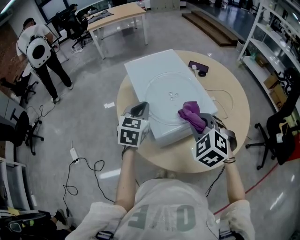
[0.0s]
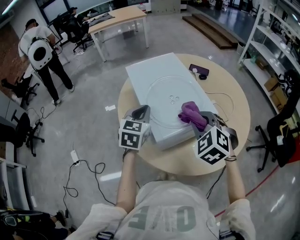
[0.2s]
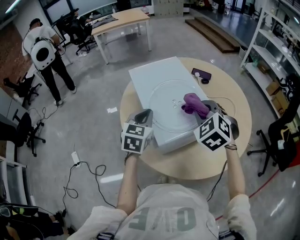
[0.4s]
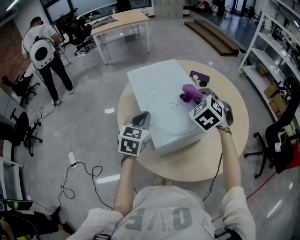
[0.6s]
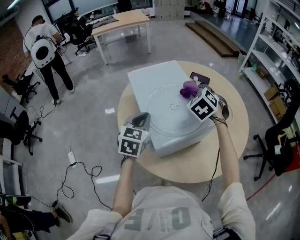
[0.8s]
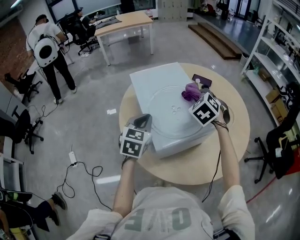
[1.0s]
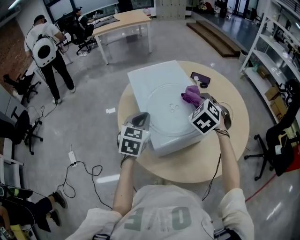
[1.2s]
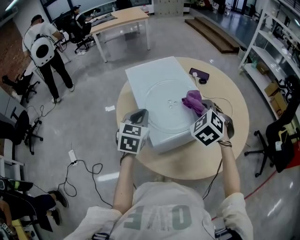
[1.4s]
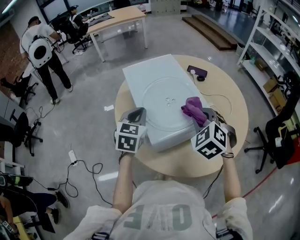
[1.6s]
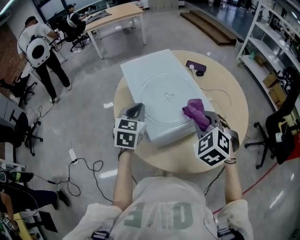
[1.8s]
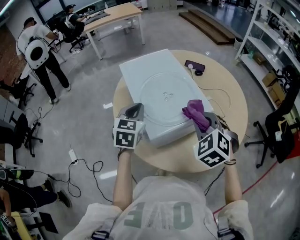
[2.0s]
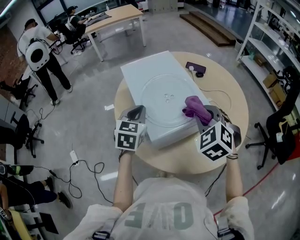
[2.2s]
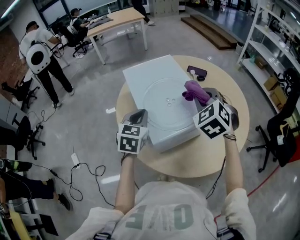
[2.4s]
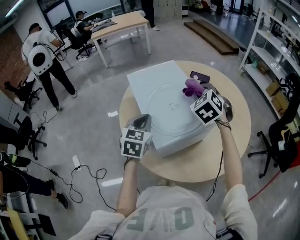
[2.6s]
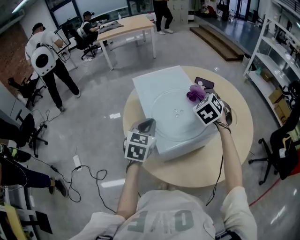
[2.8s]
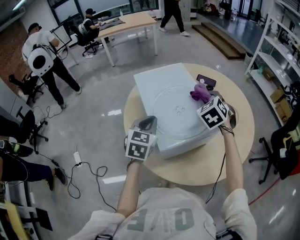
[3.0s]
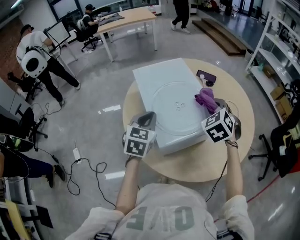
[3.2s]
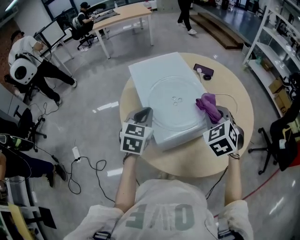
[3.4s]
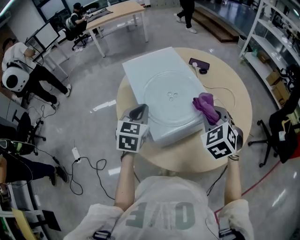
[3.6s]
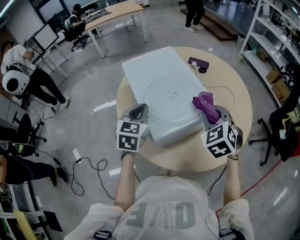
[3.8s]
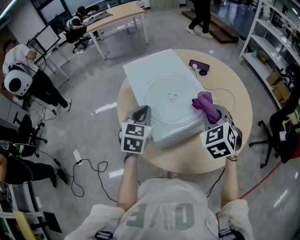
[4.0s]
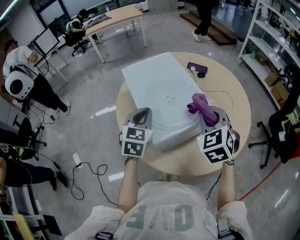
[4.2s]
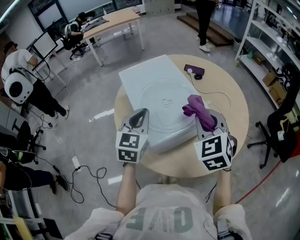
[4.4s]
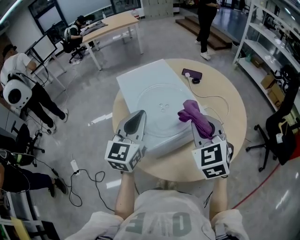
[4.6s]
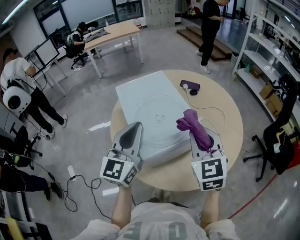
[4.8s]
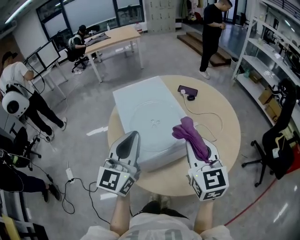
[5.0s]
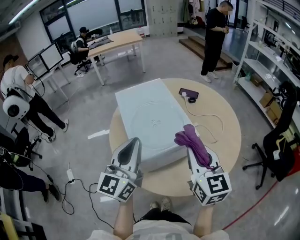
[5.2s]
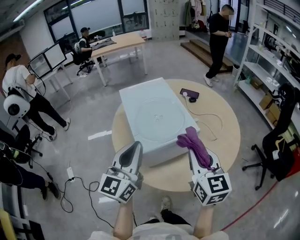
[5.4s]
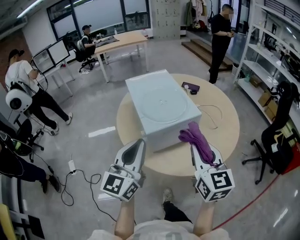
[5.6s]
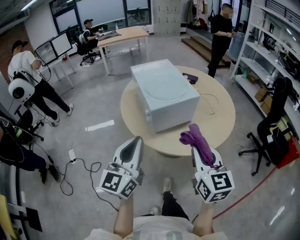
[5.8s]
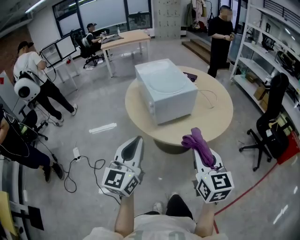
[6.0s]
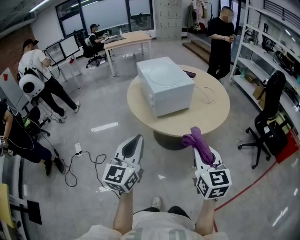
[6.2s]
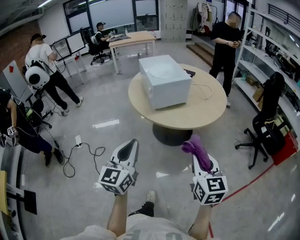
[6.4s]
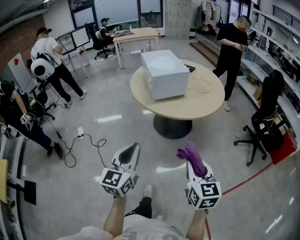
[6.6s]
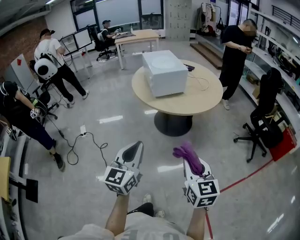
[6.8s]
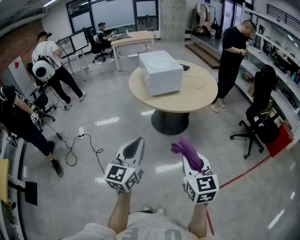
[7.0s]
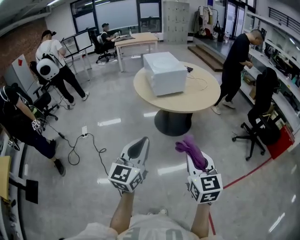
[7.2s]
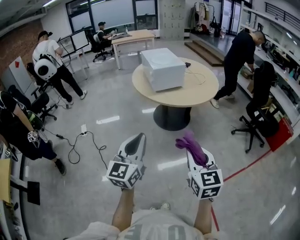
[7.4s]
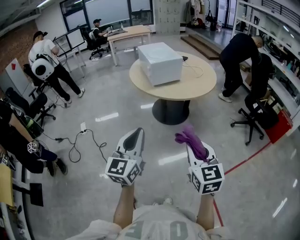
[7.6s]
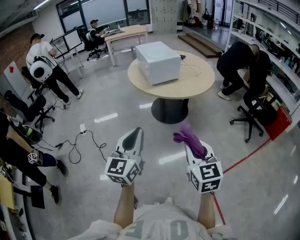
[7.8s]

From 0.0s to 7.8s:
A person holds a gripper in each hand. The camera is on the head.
From 0.0s to 1.6s: The right gripper reaches some 20 cm forward, then returns.
From 1.6s to 3.2s: The right gripper goes roughly 5 cm forward.
From 3.2s to 4.6s: The left gripper shifts about 10 cm upward, and rotates roughly 30 degrees. Meanwhile the right gripper is displaced backward and upward by some 10 cm, and rotates roughly 20 degrees.
From 4.6s to 6.2s: The pair of grippers is taken backward, approximately 40 cm. The right gripper rotates approximately 30 degrees.
From 6.2s to 7.8s: The two grippers go roughly 30 cm backward.

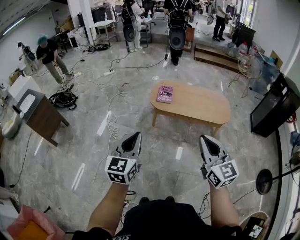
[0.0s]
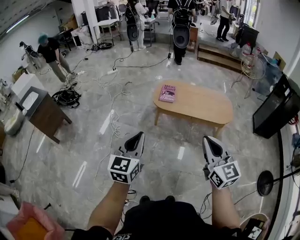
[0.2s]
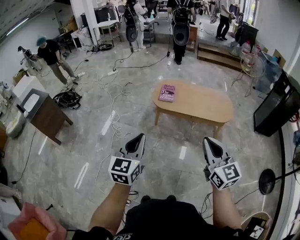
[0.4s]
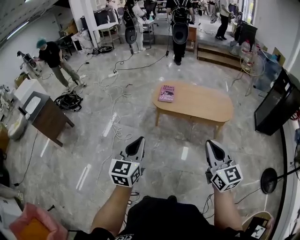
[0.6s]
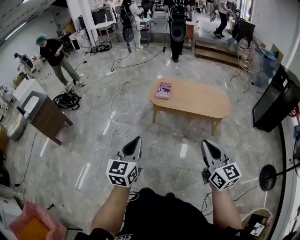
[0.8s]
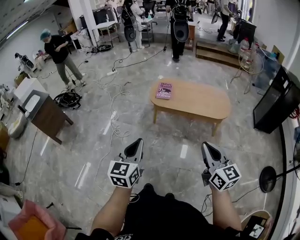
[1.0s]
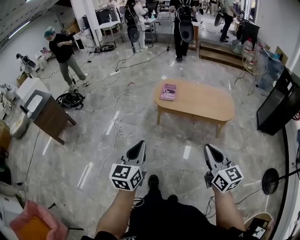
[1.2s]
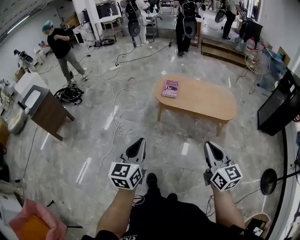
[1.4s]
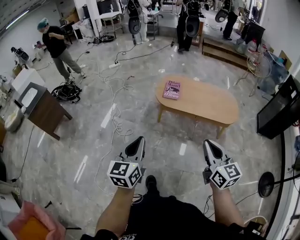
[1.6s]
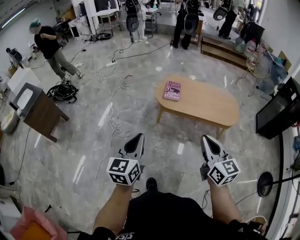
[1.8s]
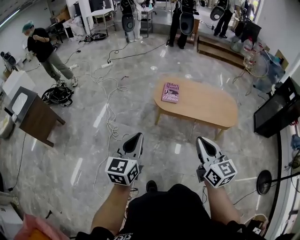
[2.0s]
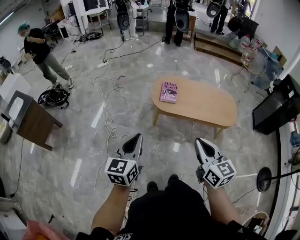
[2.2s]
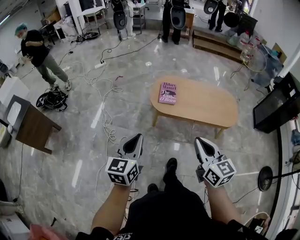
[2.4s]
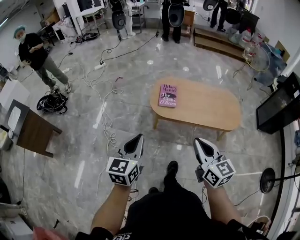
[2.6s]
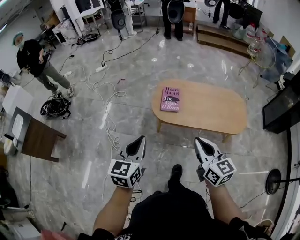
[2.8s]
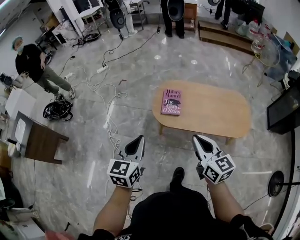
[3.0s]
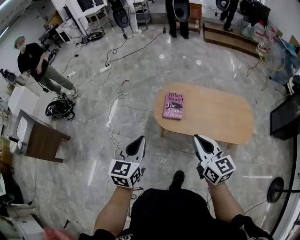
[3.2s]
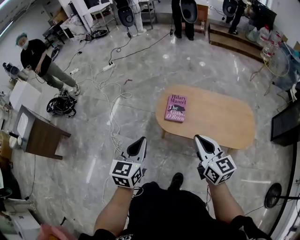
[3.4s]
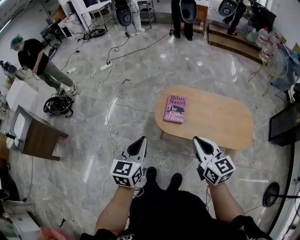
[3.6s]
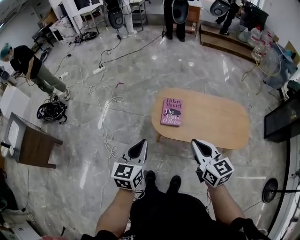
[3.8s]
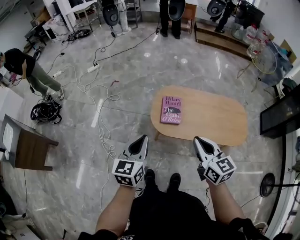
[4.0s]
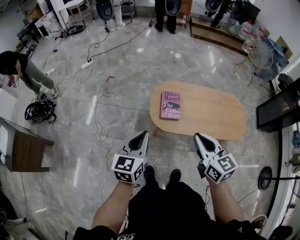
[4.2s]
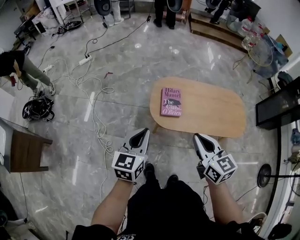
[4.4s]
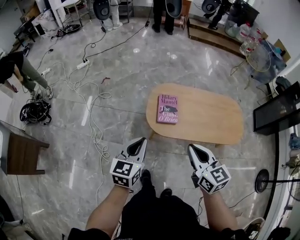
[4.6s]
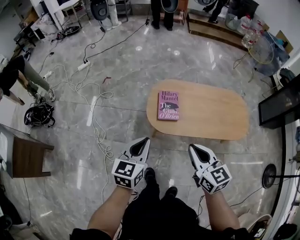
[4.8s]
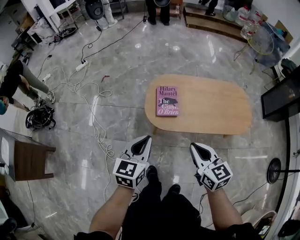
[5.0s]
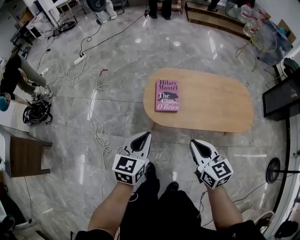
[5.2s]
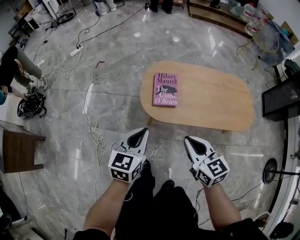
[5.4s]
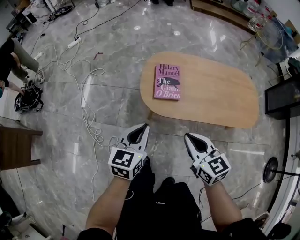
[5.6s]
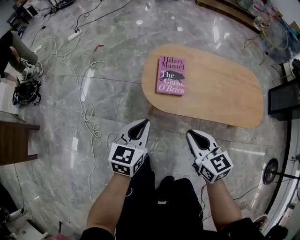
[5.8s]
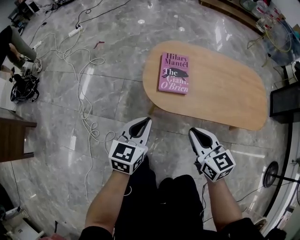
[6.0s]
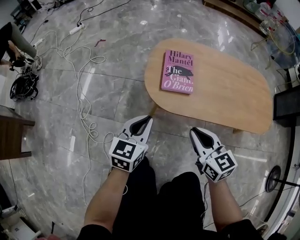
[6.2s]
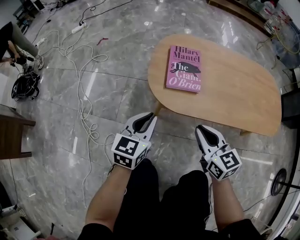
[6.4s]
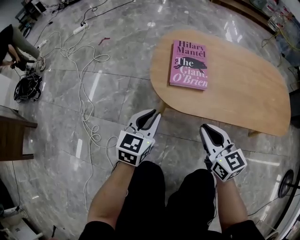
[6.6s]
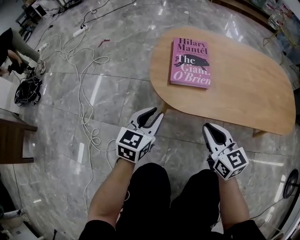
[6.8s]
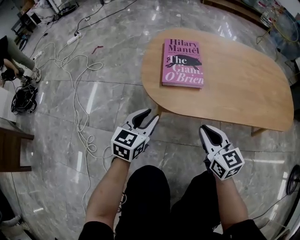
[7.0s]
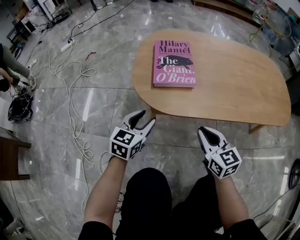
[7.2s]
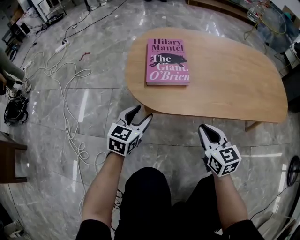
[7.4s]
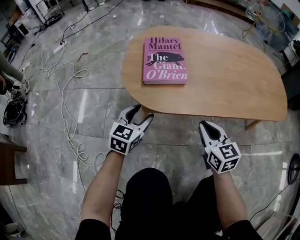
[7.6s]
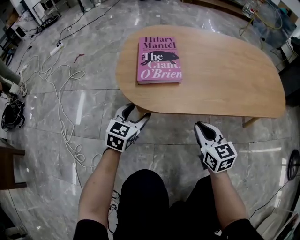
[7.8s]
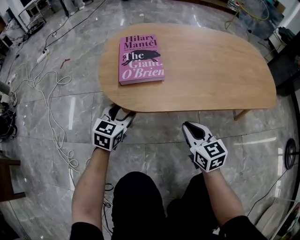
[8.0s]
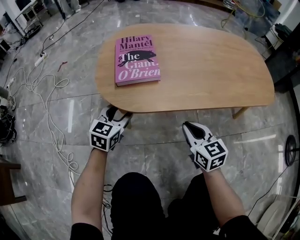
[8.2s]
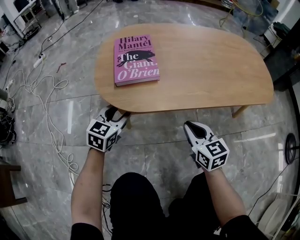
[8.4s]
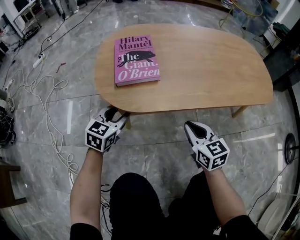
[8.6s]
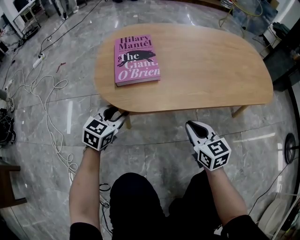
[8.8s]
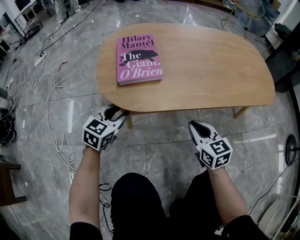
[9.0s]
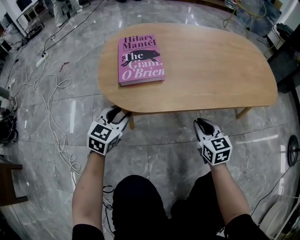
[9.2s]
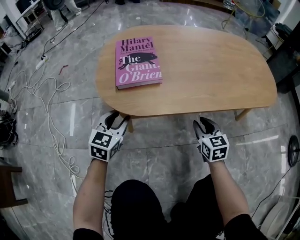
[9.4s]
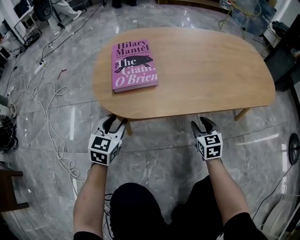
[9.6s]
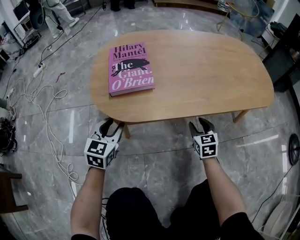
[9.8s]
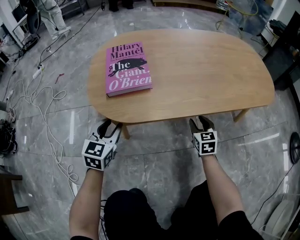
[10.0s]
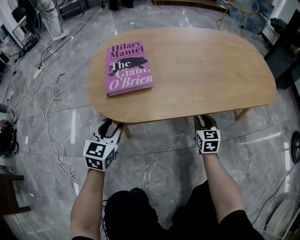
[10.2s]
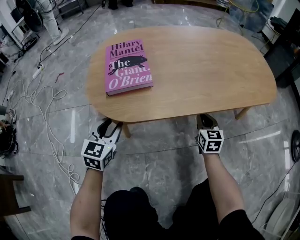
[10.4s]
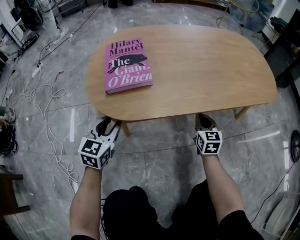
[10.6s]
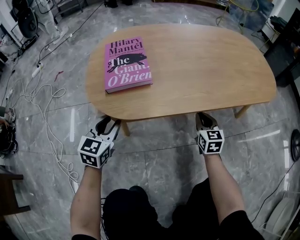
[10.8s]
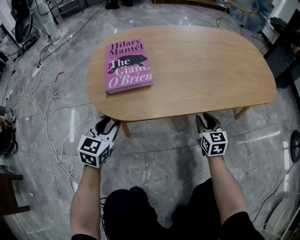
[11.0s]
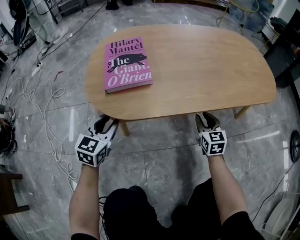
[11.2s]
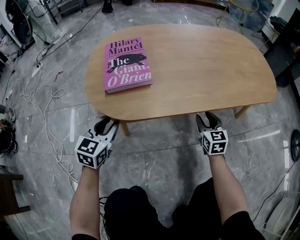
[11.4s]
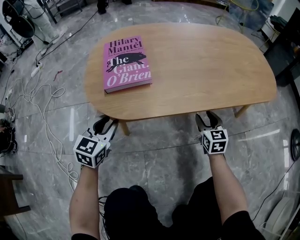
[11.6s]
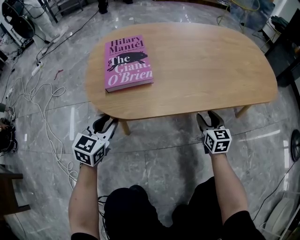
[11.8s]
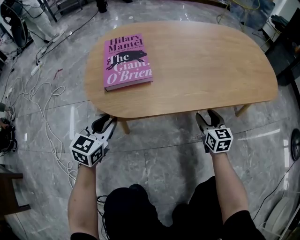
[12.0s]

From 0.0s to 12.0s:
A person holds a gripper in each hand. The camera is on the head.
From 0.0s to 1.6s: The left gripper reaches roughly 5 cm backward, then returns. The right gripper heads downward, covering some 5 cm.
From 1.6s to 3.0s: Both grippers move forward, some 35 cm.
From 3.0s to 4.4s: Both grippers move forward and to the left, roughly 15 cm.
From 4.4s to 6.0s: Both grippers travel together downward, roughly 30 cm.
From 6.0s to 7.6s: The two grippers go approximately 25 cm downward. The left gripper opens up.
From 7.6s to 9.0s: The right gripper ends up approximately 5 cm from where it was; the left gripper closes its fingers.
From 9.0s to 10.4s: The right gripper goes some 15 cm forward, downward and to the right, swivels approximately 20 degrees, and opens, then closes again.
From 10.4s to 12.0s: The right gripper opens its fingers.

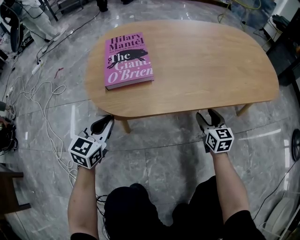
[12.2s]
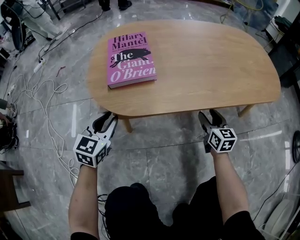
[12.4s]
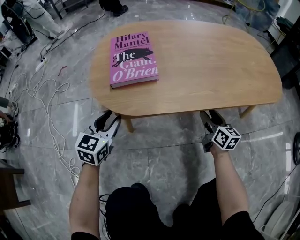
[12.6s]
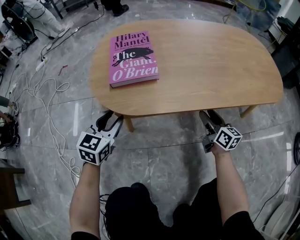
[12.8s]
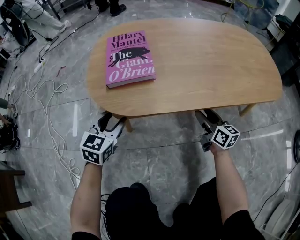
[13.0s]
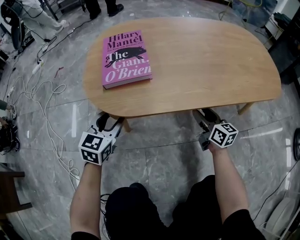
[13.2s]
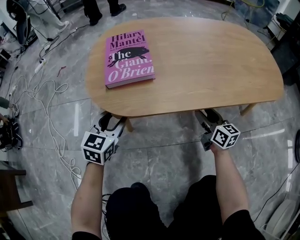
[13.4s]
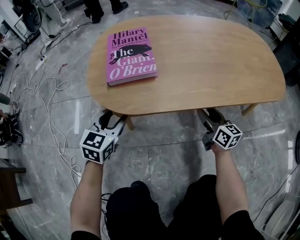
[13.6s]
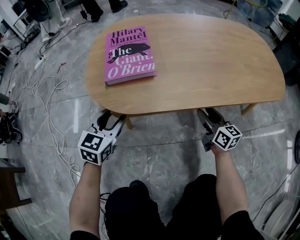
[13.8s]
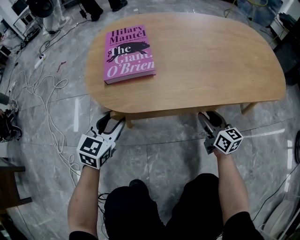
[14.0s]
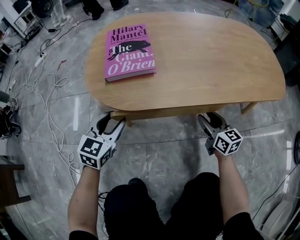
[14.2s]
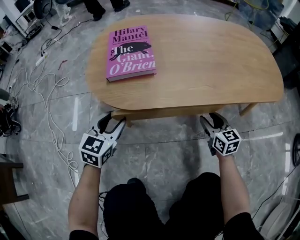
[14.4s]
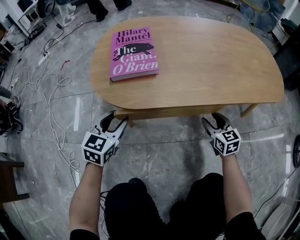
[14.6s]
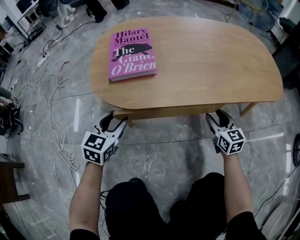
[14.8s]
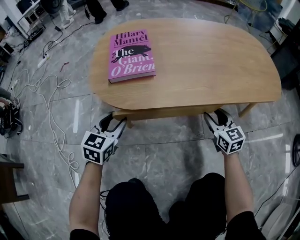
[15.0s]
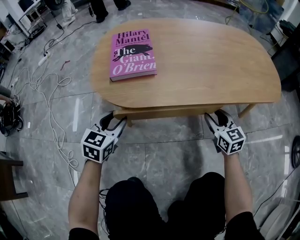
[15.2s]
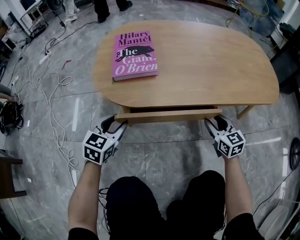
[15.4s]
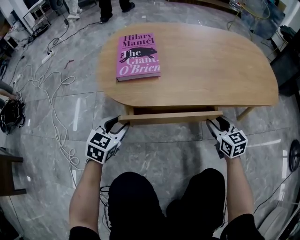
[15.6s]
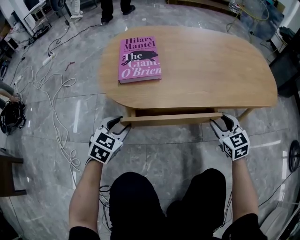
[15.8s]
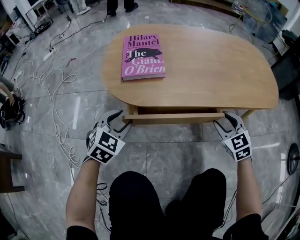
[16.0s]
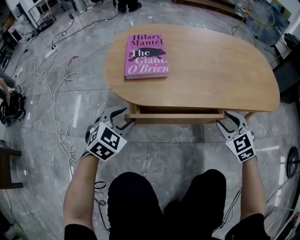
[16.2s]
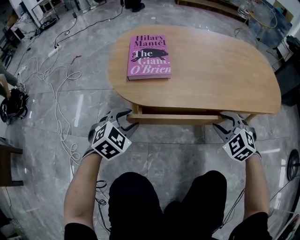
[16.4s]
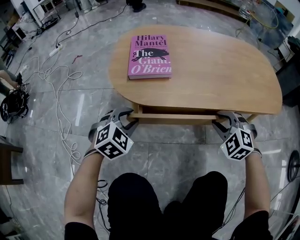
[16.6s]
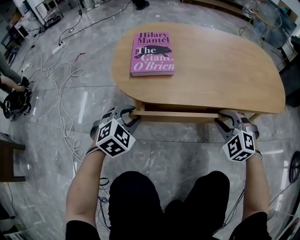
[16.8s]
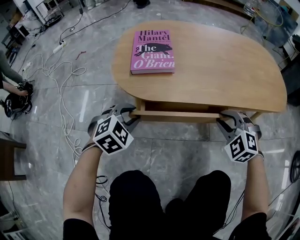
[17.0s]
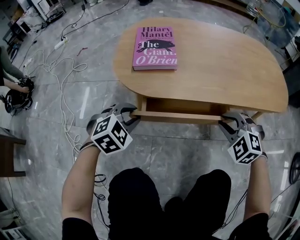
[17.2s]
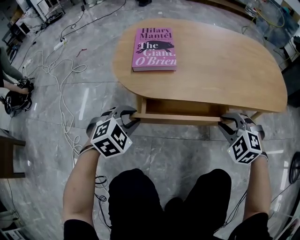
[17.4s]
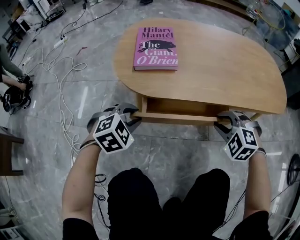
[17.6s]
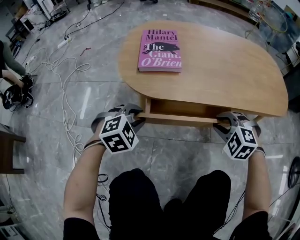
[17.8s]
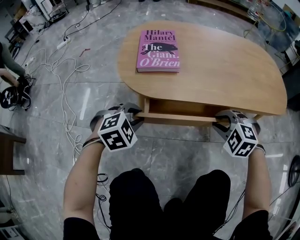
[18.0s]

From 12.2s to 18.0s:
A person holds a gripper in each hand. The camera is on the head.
From 12.2s to 13.6s: The right gripper rotates about 30 degrees. Meanwhile the left gripper opens its fingers.
From 13.6s to 15.0s: The right gripper swivels approximately 30 degrees.
From 15.0s to 16.6s: The right gripper is displaced upward by about 5 cm, and rotates around the line of its fingers by some 60 degrees, counterclockwise from behind. The left gripper swivels about 40 degrees.
From 16.6s to 18.0s: The grippers move only a little.
